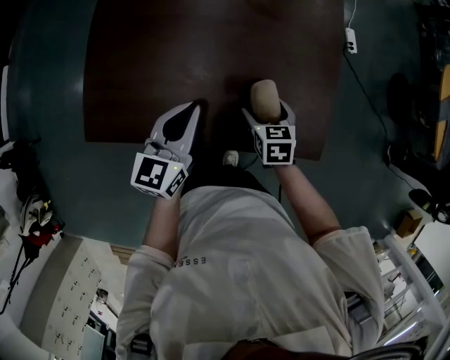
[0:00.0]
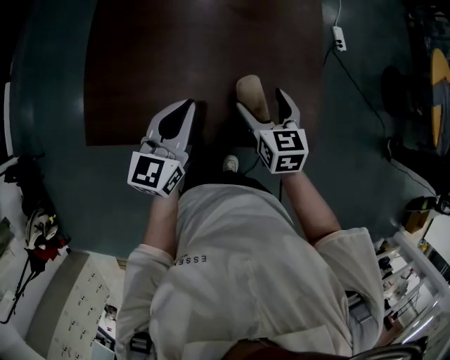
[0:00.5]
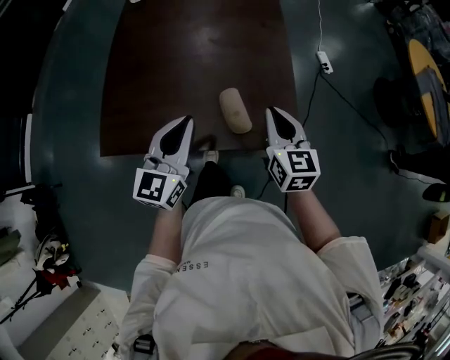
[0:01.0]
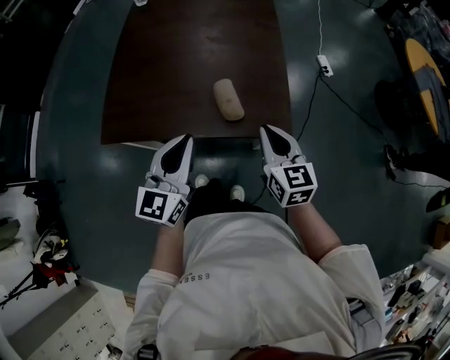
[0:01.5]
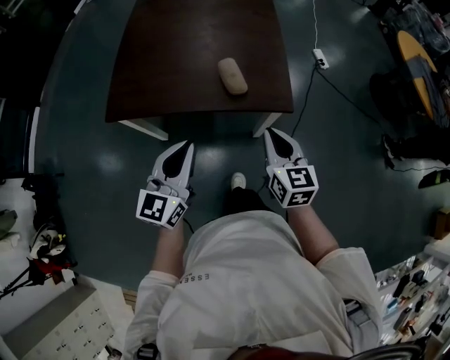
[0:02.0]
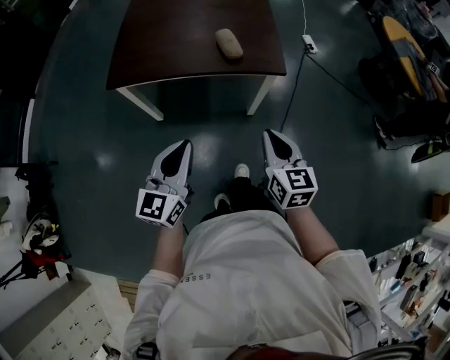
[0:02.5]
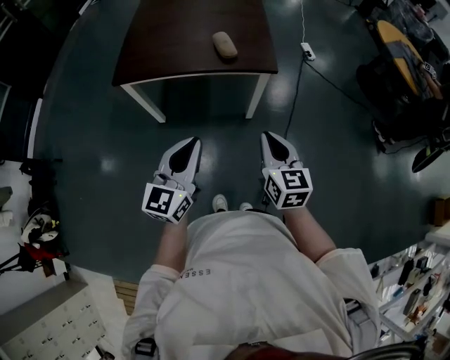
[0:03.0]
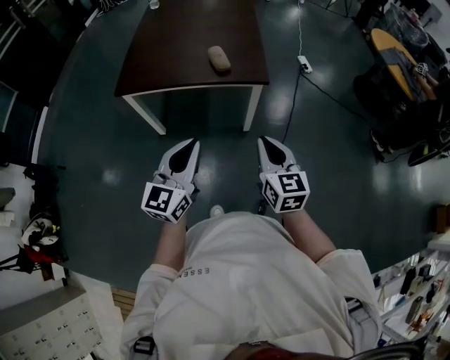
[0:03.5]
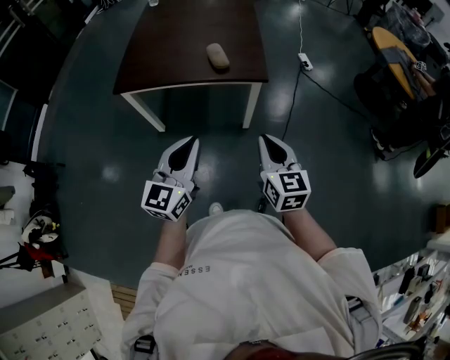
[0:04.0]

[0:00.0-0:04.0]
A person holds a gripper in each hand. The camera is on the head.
0:00.0 to 0:02.0: The grippers both shift backward and upward by approximately 35 cm. The right gripper tips its fingers upward by some 40 degrees, and closes its fingers.
0:02.0 to 0:04.0: The right gripper travels backward by about 20 cm. The left gripper goes approximately 25 cm backward and to the right.

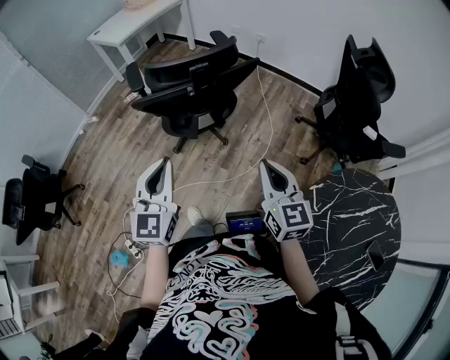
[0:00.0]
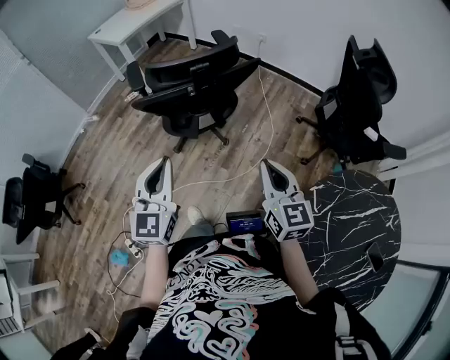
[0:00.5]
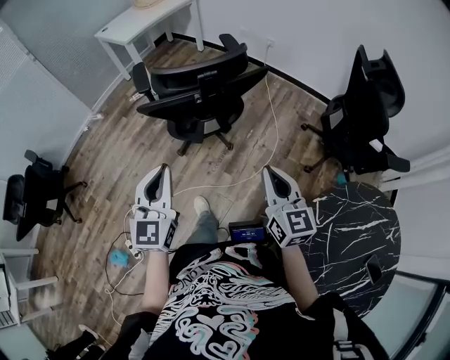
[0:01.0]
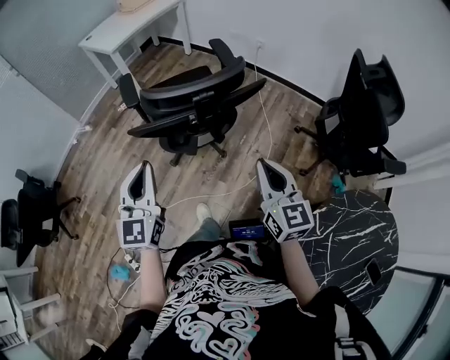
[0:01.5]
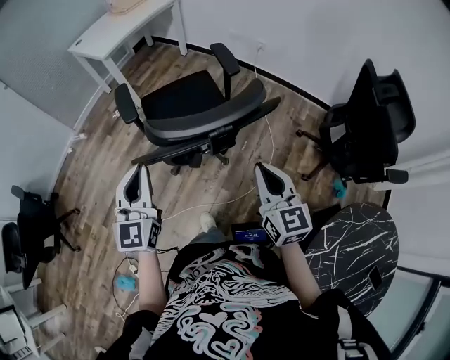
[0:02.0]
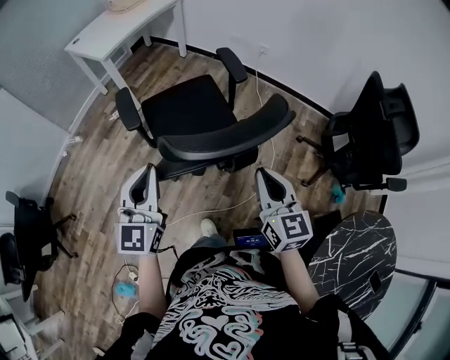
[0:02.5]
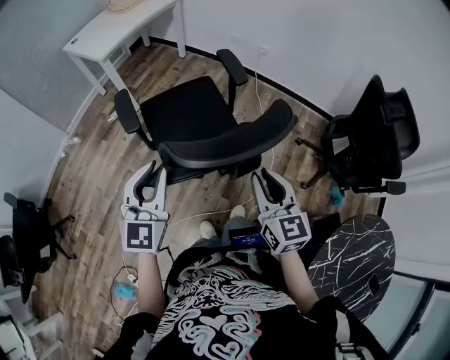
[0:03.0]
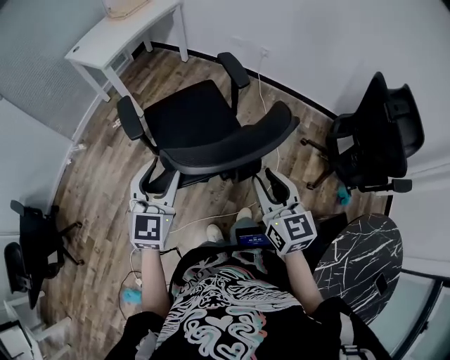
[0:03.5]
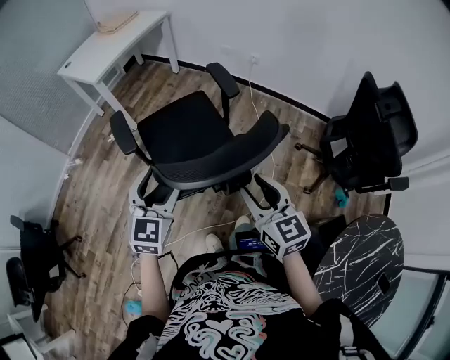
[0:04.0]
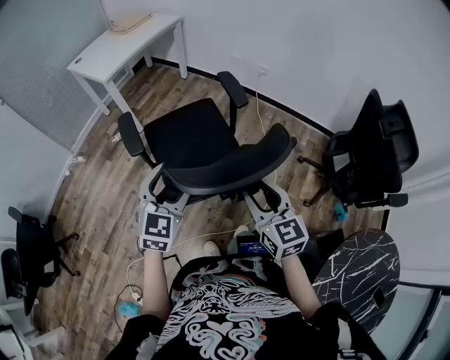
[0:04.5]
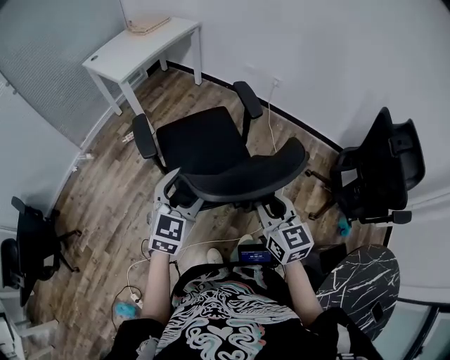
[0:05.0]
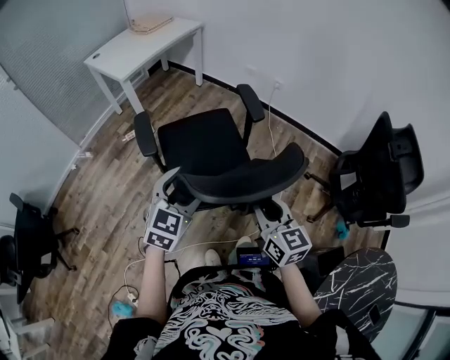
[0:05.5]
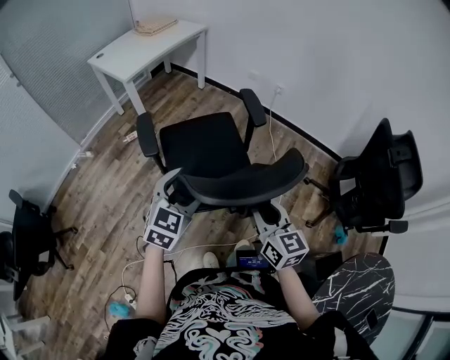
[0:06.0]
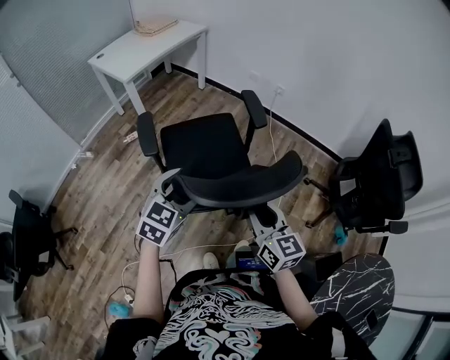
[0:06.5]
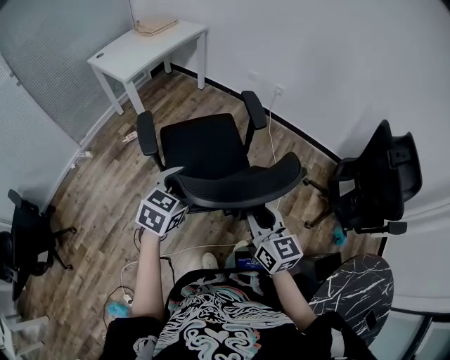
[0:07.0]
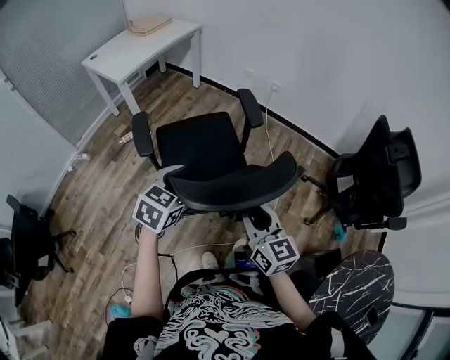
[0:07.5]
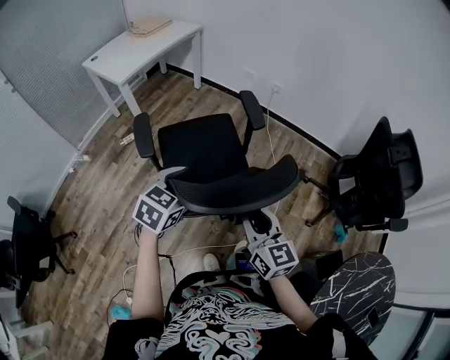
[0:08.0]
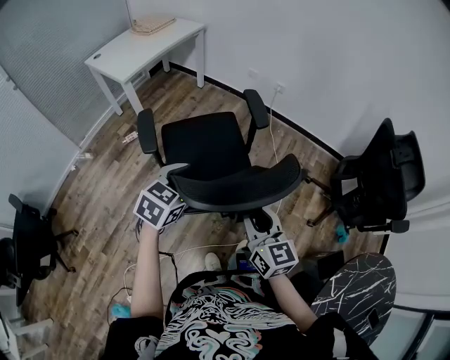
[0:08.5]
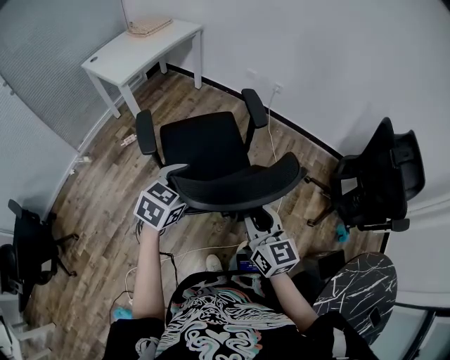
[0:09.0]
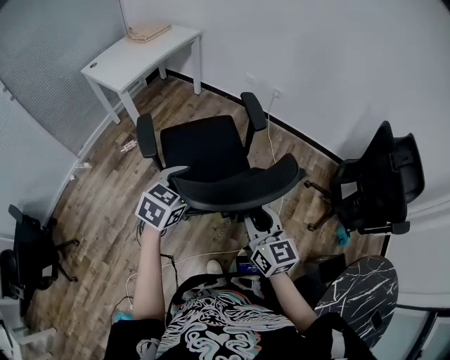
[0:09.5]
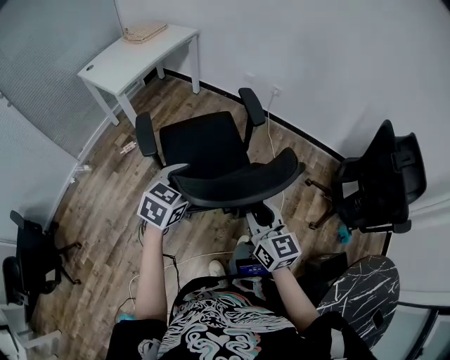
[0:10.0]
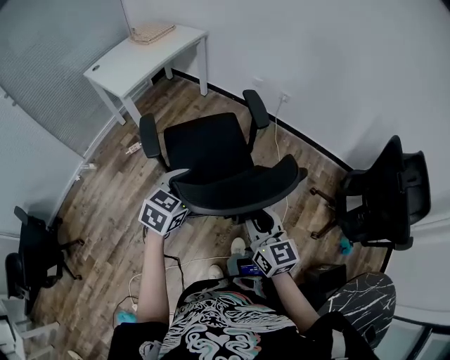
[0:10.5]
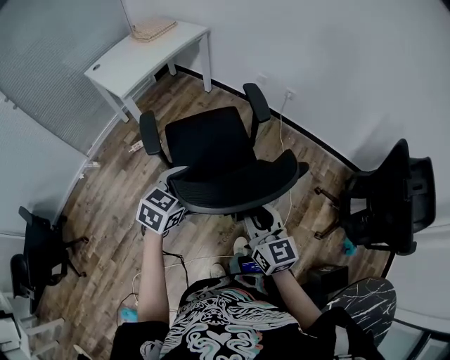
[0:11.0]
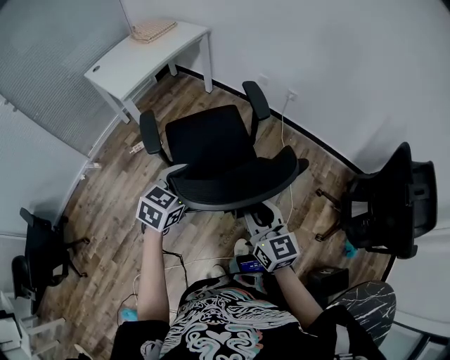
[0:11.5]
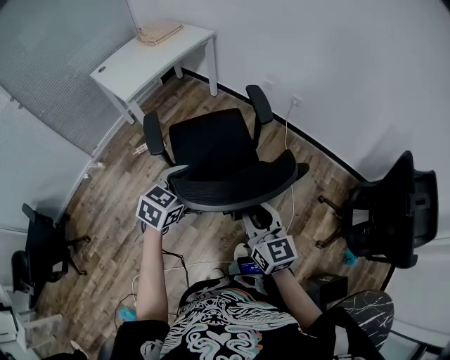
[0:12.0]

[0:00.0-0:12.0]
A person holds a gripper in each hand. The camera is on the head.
0:00.0 to 0:02.0: The right gripper travels forward by about 20 cm. The left gripper goes approximately 25 cm forward and to the left.
0:02.0 to 0:04.0: The right gripper travels forward and to the left by some 10 cm, and opens up. Meanwhile the left gripper is displaced forward and downward by roughly 10 cm, turns by some 20 degrees, and opens up.
0:04.0 to 0:06.0: The right gripper changes place by approximately 5 cm.
0:06.0 to 0:08.0: The grippers stay close to where they were, moving slightly.
0:08.0 to 0:10.0: Both grippers move forward, some 5 cm.
0:10.0 to 0:12.0: The two grippers go about 10 cm forward.

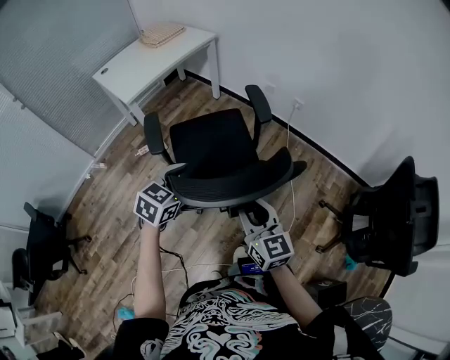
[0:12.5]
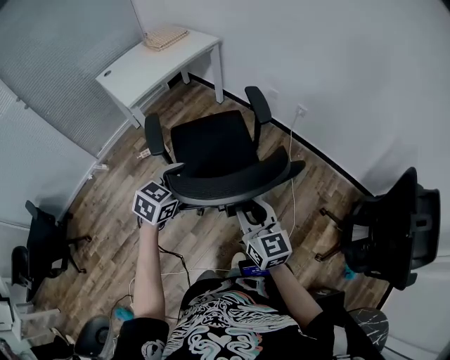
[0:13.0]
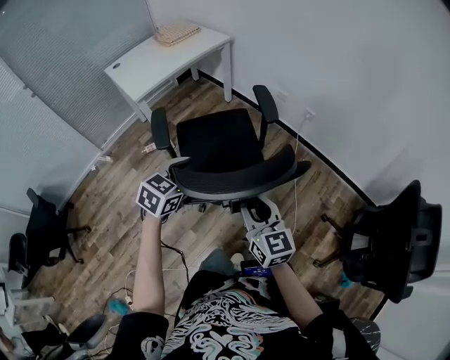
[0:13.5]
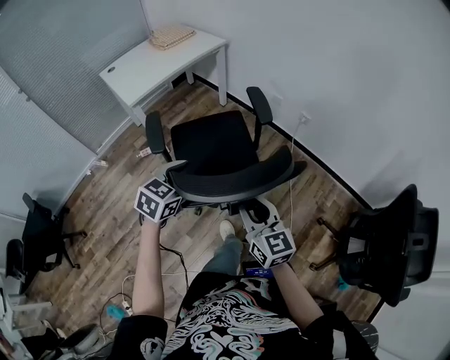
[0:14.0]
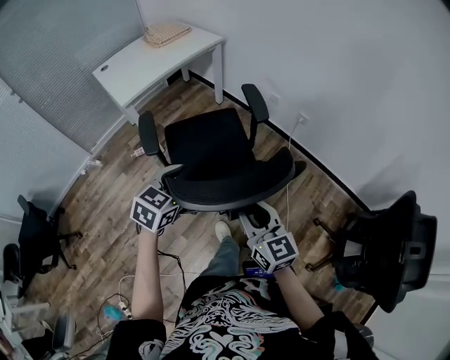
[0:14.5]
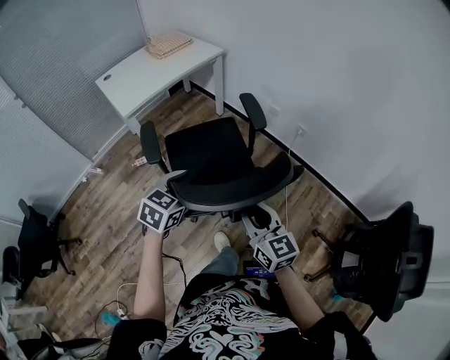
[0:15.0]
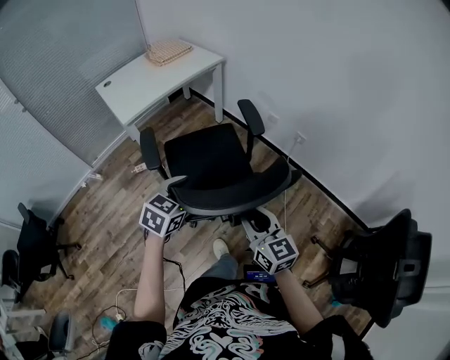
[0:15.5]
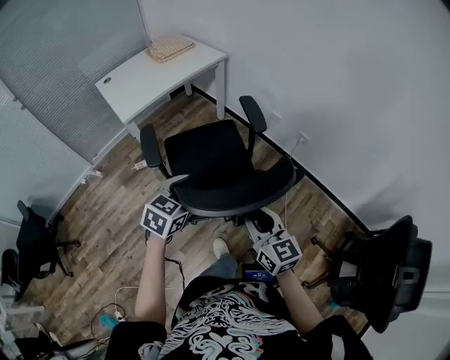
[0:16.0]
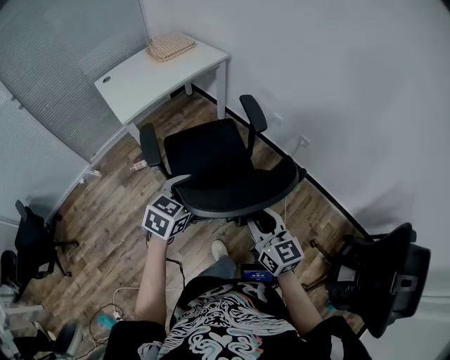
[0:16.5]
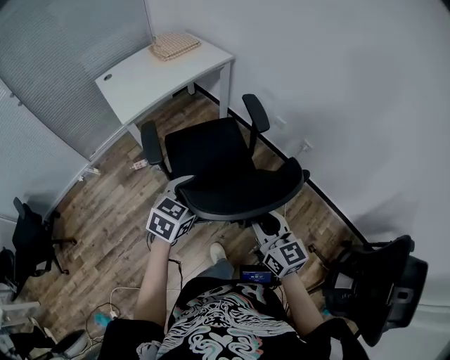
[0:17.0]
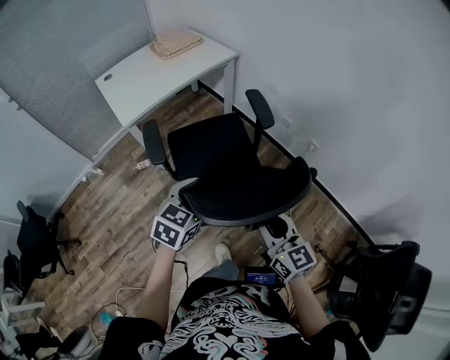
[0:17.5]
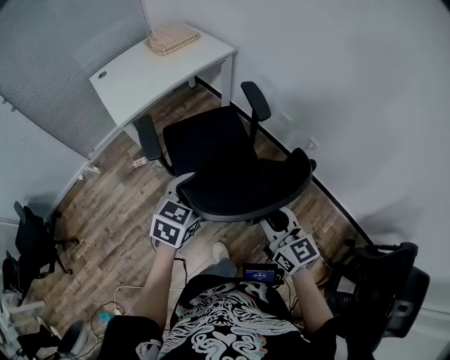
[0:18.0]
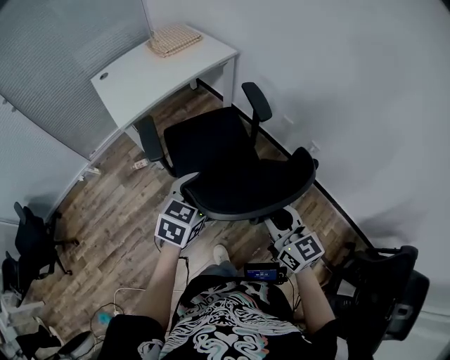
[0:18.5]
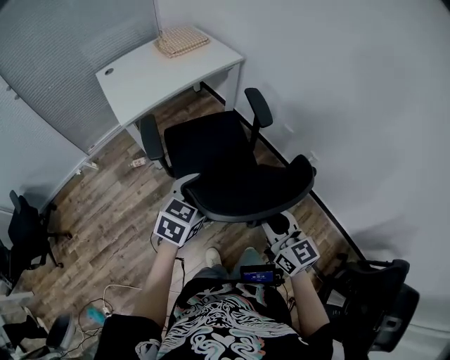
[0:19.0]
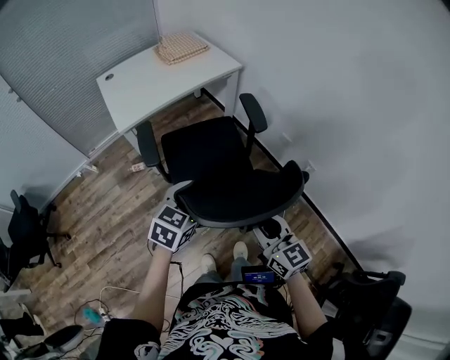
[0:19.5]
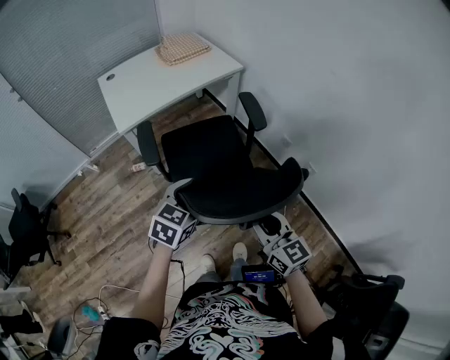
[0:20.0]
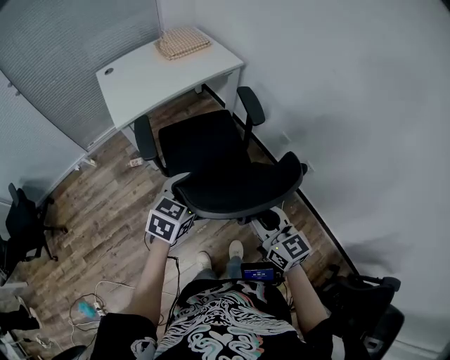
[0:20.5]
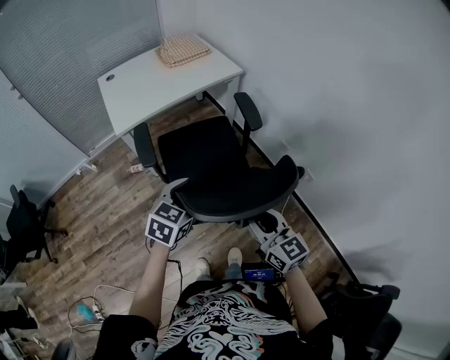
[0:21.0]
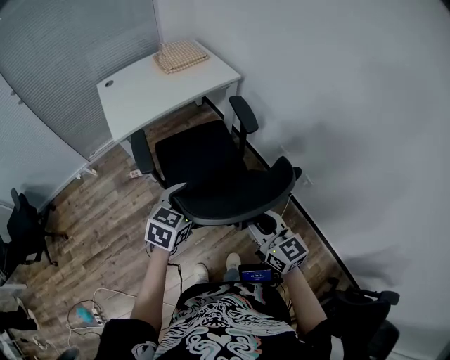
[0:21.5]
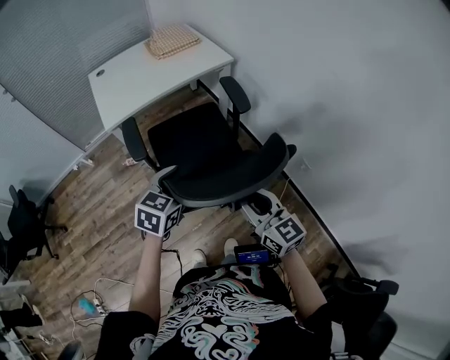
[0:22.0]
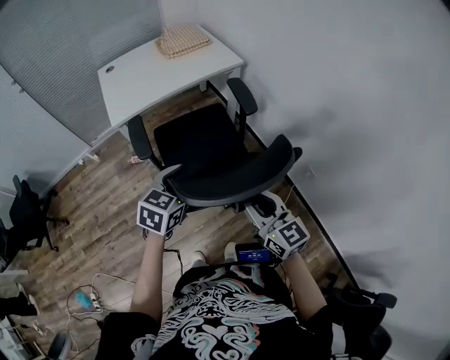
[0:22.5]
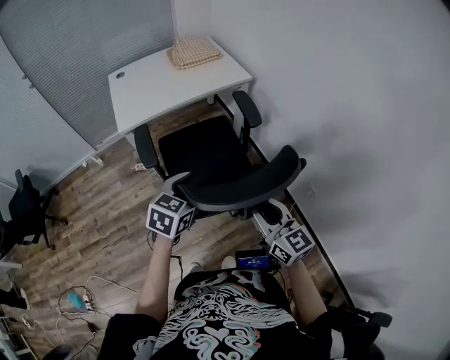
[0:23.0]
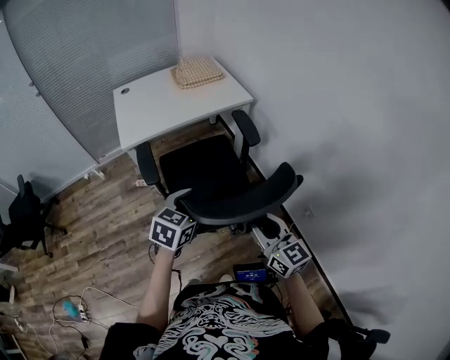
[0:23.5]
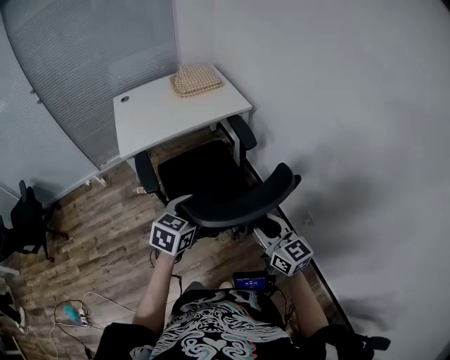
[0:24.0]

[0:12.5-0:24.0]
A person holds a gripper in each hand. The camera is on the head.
0:12.5 to 0:14.5: Both grippers move forward, roughly 10 cm.
0:14.5 to 0:16.5: Both grippers move forward, some 10 cm.
0:16.5 to 0:18.5: The grippers both shift forward by approximately 10 cm.
0:18.5 to 0:20.0: The right gripper changes place by approximately 5 cm.
0:20.0 to 0:22.0: The right gripper travels forward by about 5 cm. Meanwhile the left gripper moves about 5 cm.
0:22.0 to 0:24.0: The left gripper is displaced forward by approximately 5 cm. The right gripper travels forward and to the right by some 10 cm.
